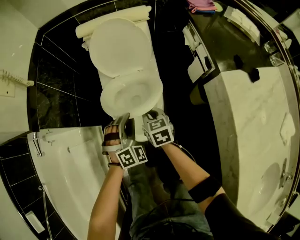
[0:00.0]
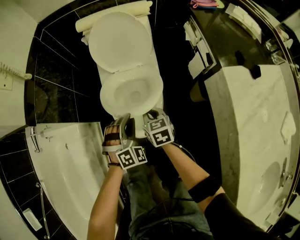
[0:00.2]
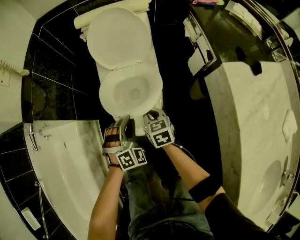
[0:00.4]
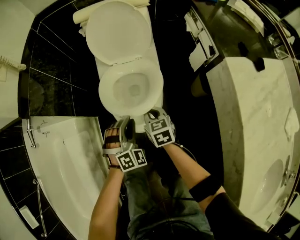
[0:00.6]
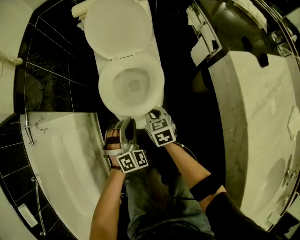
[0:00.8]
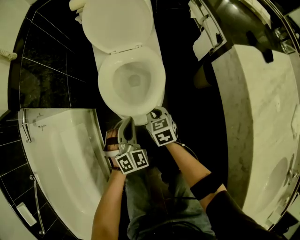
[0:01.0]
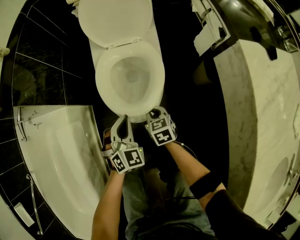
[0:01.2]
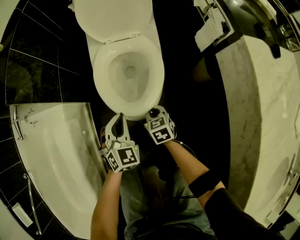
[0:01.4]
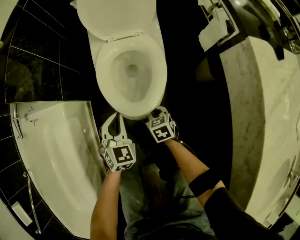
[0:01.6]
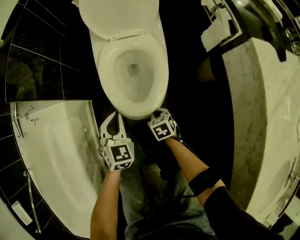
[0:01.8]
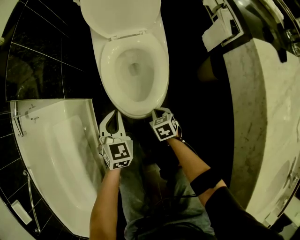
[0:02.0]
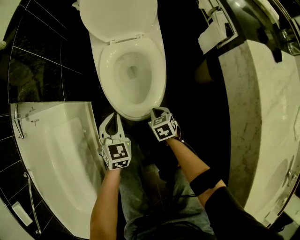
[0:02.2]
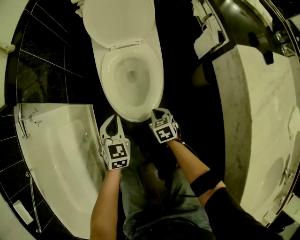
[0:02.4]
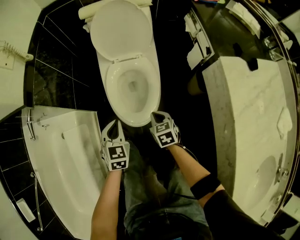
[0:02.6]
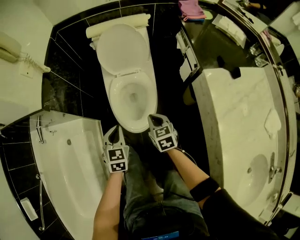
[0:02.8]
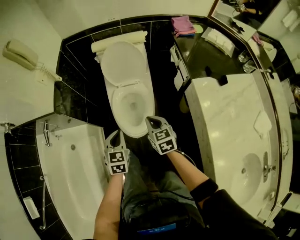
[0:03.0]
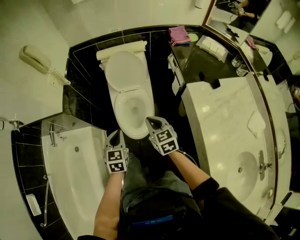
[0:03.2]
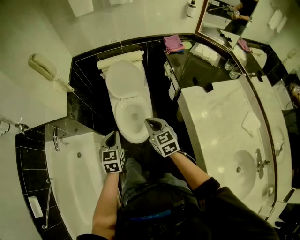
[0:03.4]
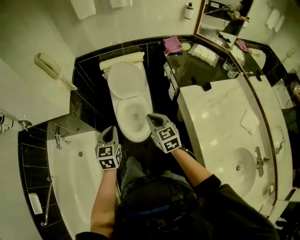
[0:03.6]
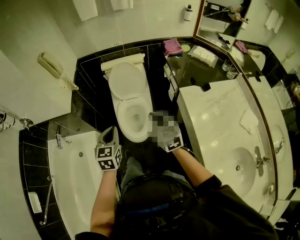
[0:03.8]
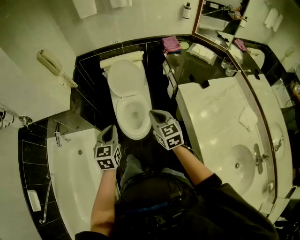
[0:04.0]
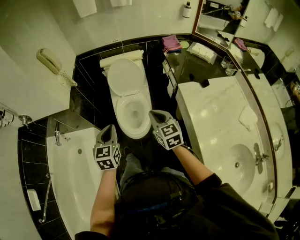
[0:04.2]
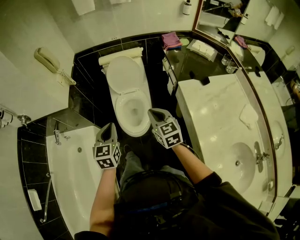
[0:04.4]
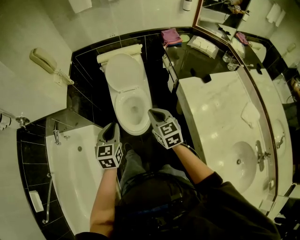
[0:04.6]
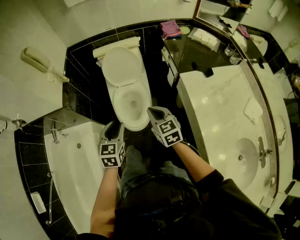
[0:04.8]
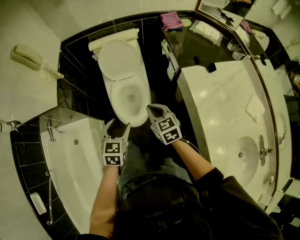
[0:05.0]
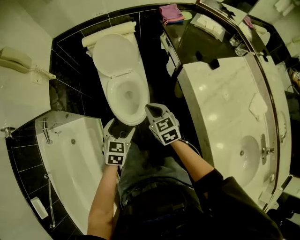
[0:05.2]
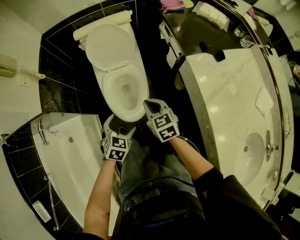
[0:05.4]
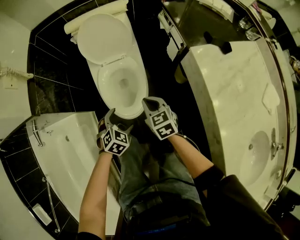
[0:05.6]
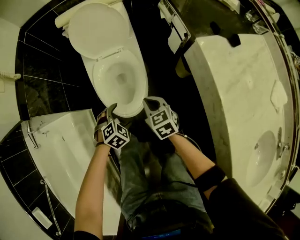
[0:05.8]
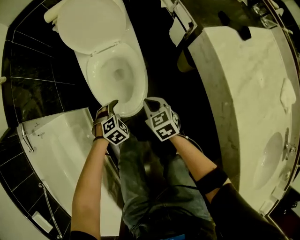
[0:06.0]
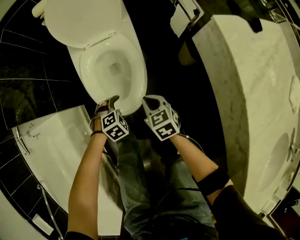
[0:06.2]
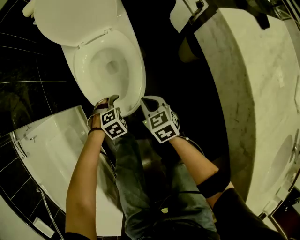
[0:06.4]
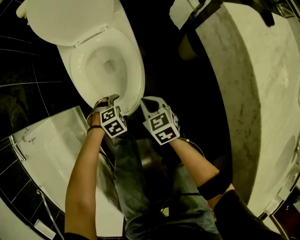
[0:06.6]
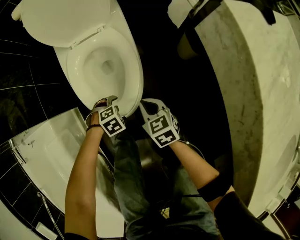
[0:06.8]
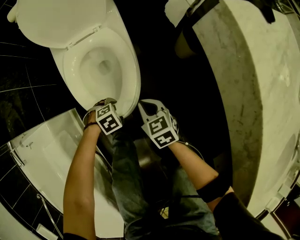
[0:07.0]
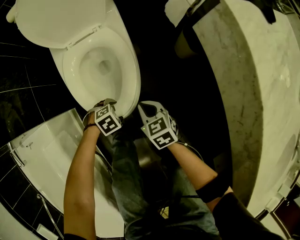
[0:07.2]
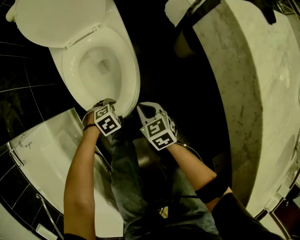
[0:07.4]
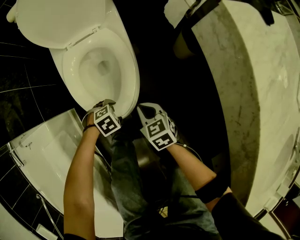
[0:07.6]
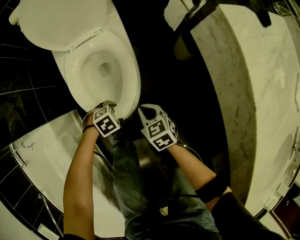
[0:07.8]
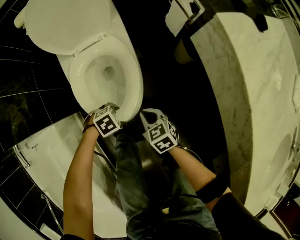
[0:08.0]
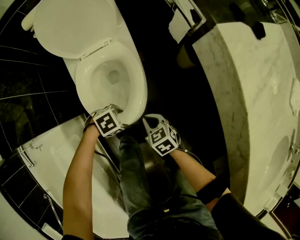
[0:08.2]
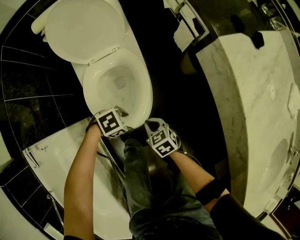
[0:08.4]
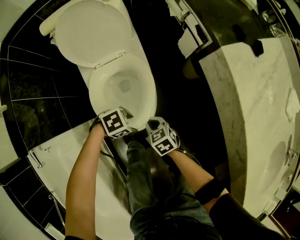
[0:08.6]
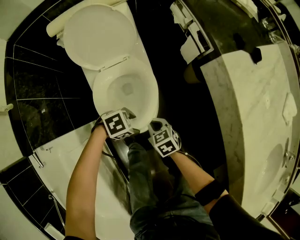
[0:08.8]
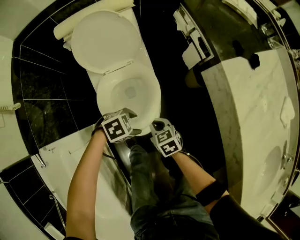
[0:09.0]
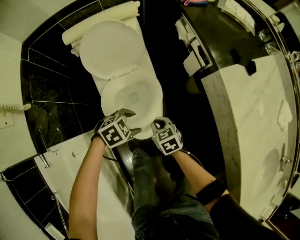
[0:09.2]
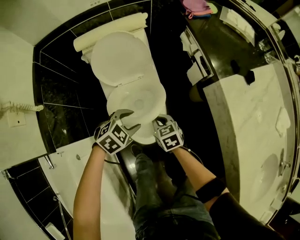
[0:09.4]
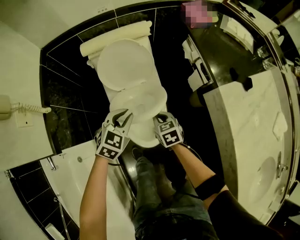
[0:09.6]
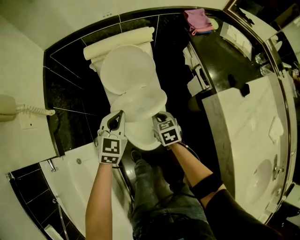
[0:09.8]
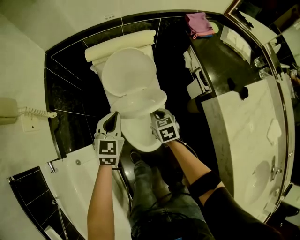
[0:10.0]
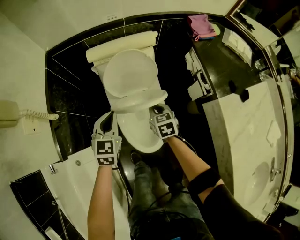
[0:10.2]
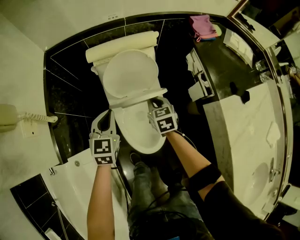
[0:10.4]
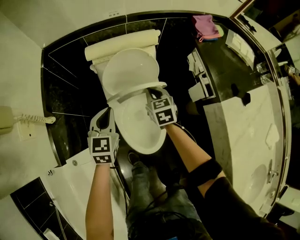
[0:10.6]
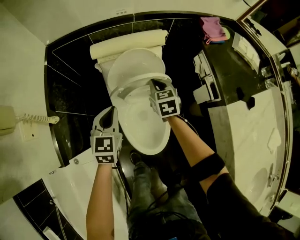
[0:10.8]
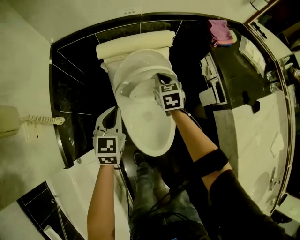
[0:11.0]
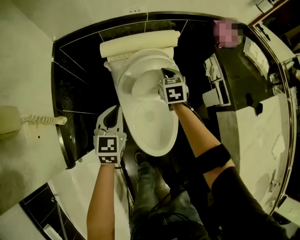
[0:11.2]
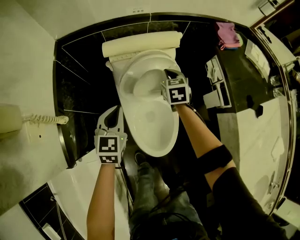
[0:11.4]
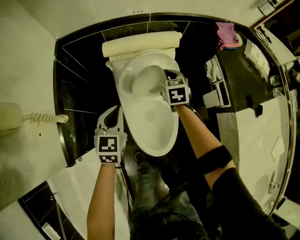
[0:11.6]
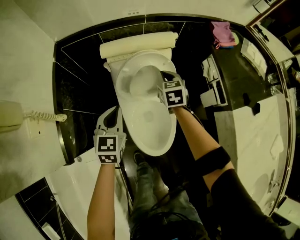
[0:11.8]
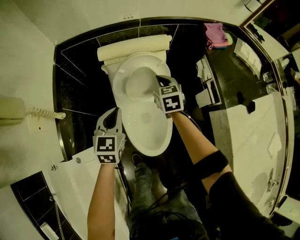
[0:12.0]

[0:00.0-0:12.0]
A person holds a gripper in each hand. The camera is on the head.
0:00.0 to 0:01.6: The right gripper is displaced downward and backward by some 25 cm, while the left gripper is displaced downward, backward and to the left by approximately 20 cm, and turns by roughly 40 degrees.
0:01.6 to 0:03.0: Both grippers move upward, about 35 cm. The right gripper swivels about 20 degrees.
0:03.0 to 0:04.4: The right gripper is displaced upward and backward by approximately 20 cm, while the left gripper heads upward, covering approximately 20 cm.
0:04.4 to 0:06.0: Both grippers move downward, roughly 50 cm. The left gripper tips its fingers downward by roughly 50 degrees, and opens up. Meanwhile the right gripper swivels roughly 30 degrees.
0:06.0 to 0:07.6: Both grippers move downward, roughly 15 cm. The left gripper changes its angle by roughly 20 degrees.
0:07.6 to 0:09.0: The right gripper heads upward, covering some 10 cm, while the left gripper is displaced upward by about 25 cm.
0:09.0 to 0:10.4: The left gripper moves about 35 cm, rotates some 80 degrees, and closes its fingers, while the right gripper shifts by approximately 30 cm.
0:10.4 to 0:12.0: The right gripper moves forward and upward, approximately 10 cm.

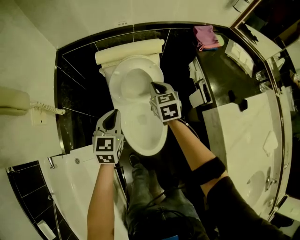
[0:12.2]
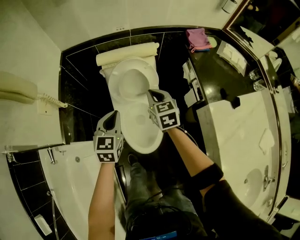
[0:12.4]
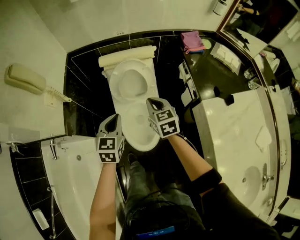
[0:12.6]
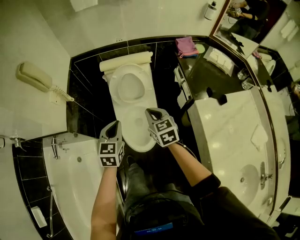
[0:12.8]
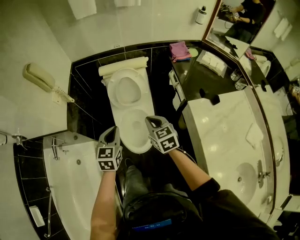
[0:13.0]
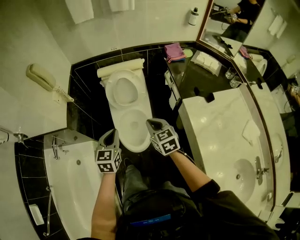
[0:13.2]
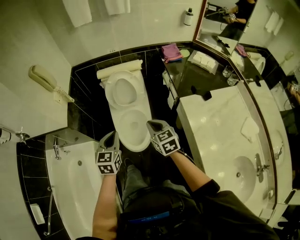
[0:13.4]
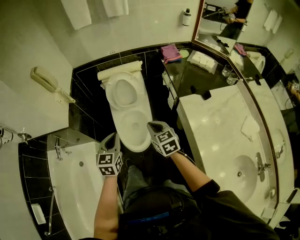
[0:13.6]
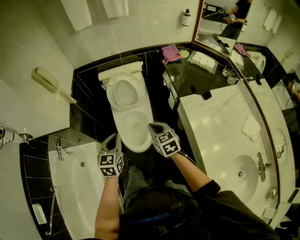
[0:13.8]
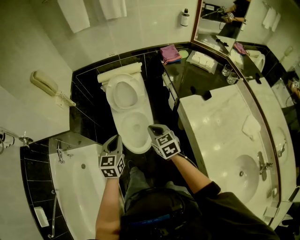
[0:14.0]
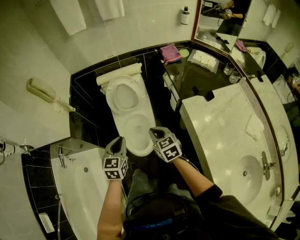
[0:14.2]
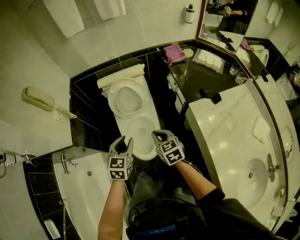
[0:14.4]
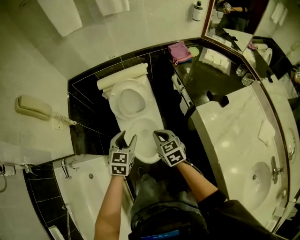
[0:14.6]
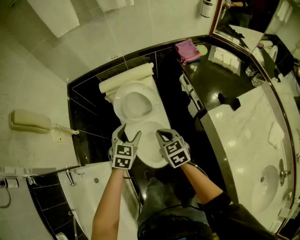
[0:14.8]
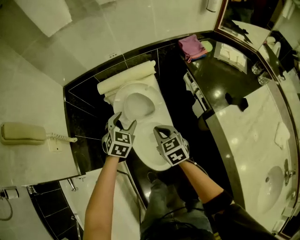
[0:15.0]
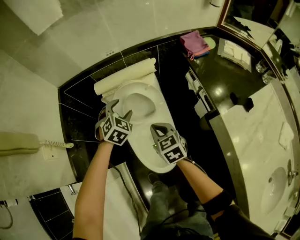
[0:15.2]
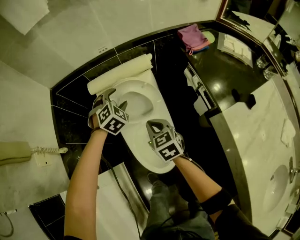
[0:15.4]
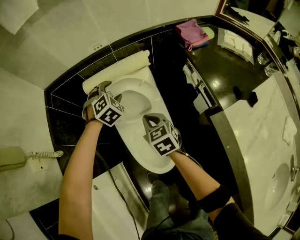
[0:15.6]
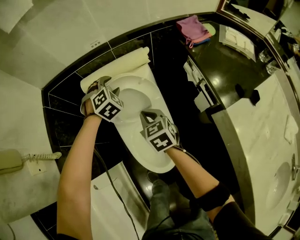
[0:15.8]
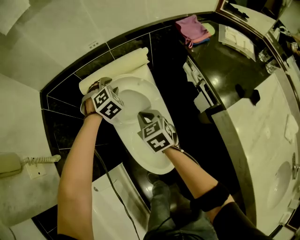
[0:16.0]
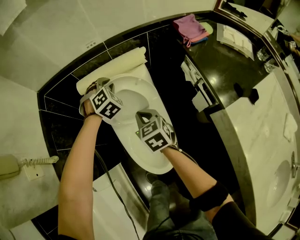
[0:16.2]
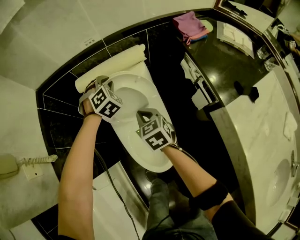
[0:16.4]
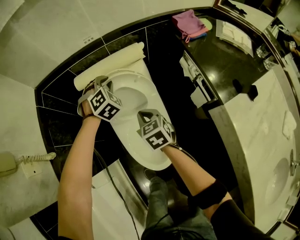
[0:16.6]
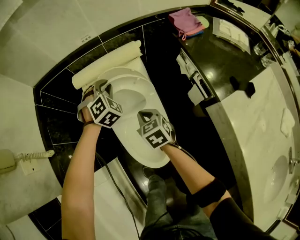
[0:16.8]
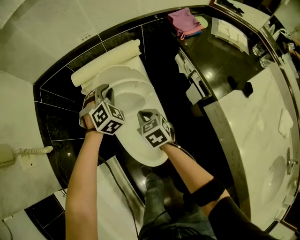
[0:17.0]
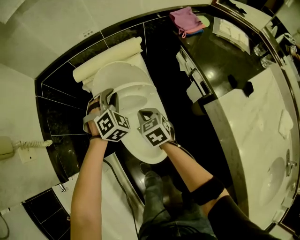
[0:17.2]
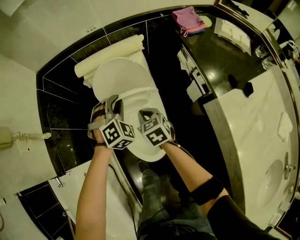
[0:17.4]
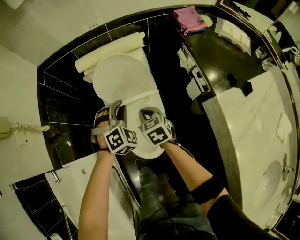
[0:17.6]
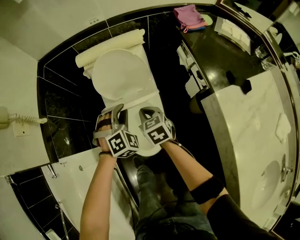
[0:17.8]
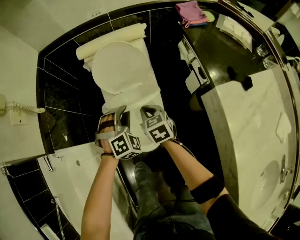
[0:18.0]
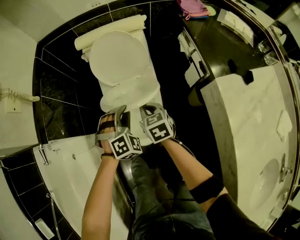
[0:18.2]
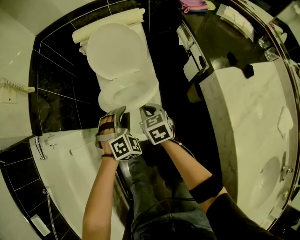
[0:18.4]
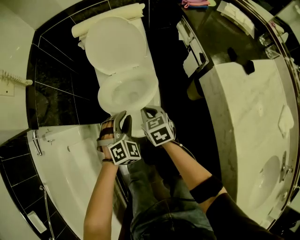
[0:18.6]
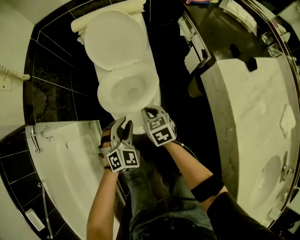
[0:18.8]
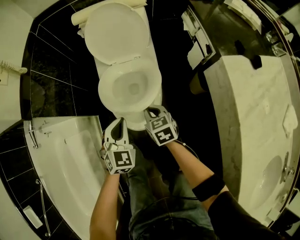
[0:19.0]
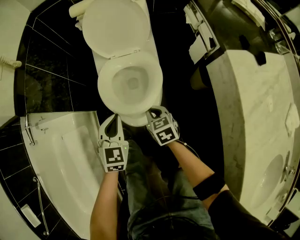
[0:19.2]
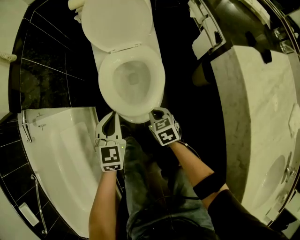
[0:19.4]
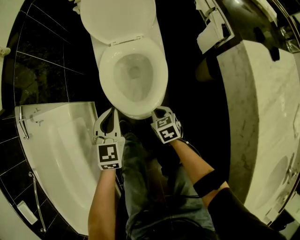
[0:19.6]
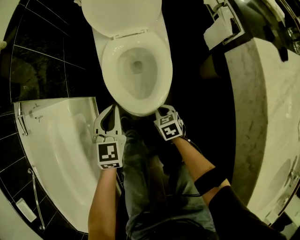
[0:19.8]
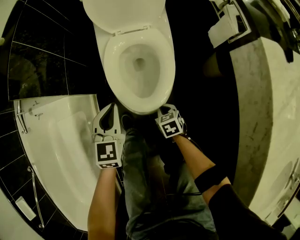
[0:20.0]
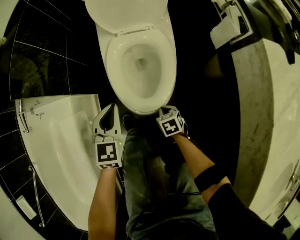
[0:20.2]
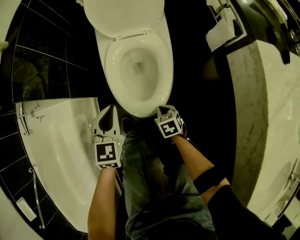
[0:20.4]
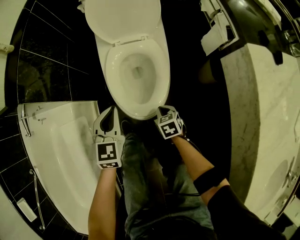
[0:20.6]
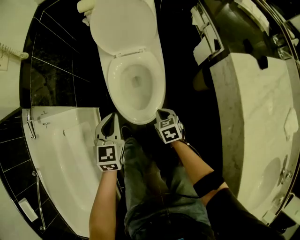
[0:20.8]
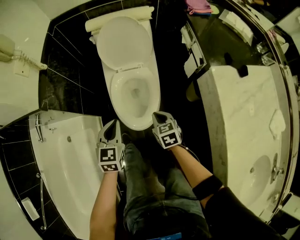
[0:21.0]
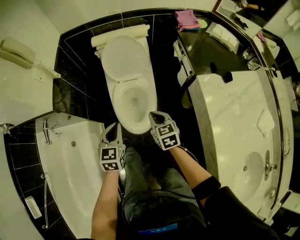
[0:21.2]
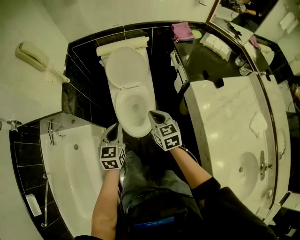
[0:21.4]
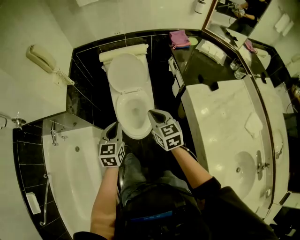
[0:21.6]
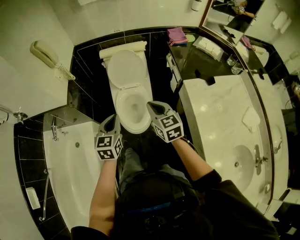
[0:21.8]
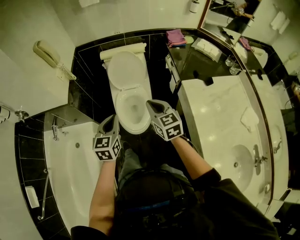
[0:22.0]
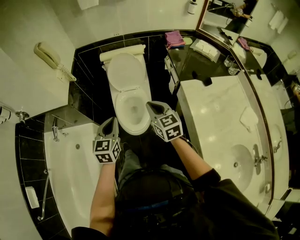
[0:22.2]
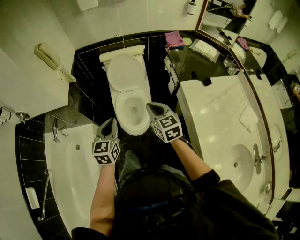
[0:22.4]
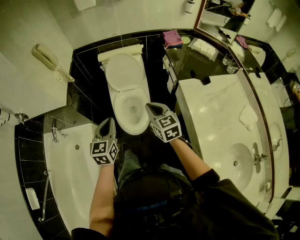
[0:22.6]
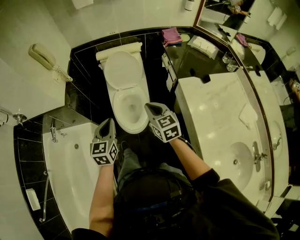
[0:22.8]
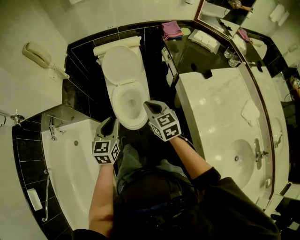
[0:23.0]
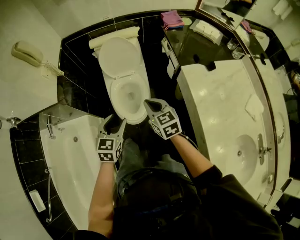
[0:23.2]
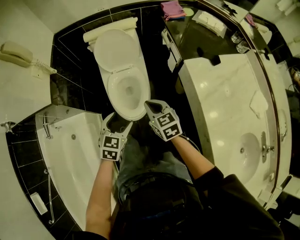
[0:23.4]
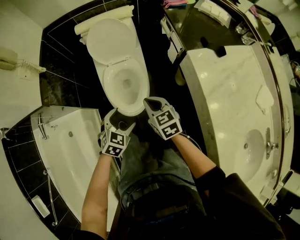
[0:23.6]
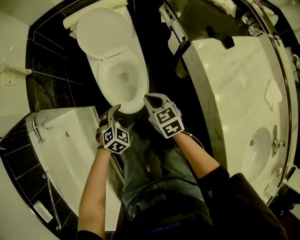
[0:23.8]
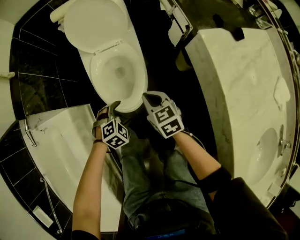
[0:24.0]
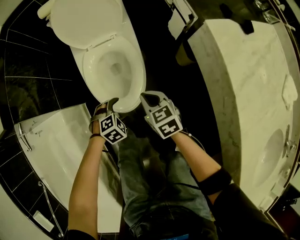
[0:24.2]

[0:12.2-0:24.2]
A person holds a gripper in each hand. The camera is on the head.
0:12.2 to 0:13.8: The left gripper shifts approximately 35 cm backward and upward, while the right gripper is displaced backward by some 35 cm.
0:13.8 to 0:15.2: The left gripper is displaced forward by some 40 cm, twists approximately 40 degrees clockwise, seen from behind, and opens; the right gripper heads forward and downward, covering some 30 cm.
0:15.2 to 0:16.6: The left gripper heads forward and downward, covering about 15 cm, and closes. The right gripper is displaced downward and forward by about 10 cm.
0:16.6 to 0:18.2: The left gripper moves backward, some 35 cm. Meanwhile the right gripper heads backward, covering roughly 15 cm.
0:18.2 to 0:19.8: The right gripper moves downward and backward, roughly 35 cm. The left gripper shifts some 20 cm backward, downward and to the left, and rolls counterclockwise, seen from behind, by roughly 60 degrees.
0:19.8 to 0:21.2: The right gripper is displaced upward by about 40 cm, and rotates some 20 degrees. Meanwhile the left gripper is displaced upward by approximately 25 cm.
0:21.2 to 0:22.6: The left gripper moves upward and backward, some 20 cm. The right gripper shifts about 20 cm upward.
0:22.6 to 0:24.2: The two grippers go about 50 cm downward. The right gripper turns by approximately 20 degrees. The left gripper tilts its fingers approximately 50 degrees downward, and opens up.
